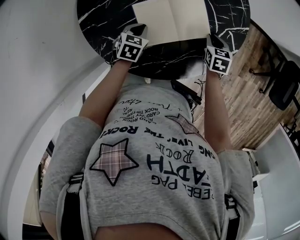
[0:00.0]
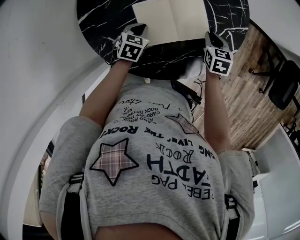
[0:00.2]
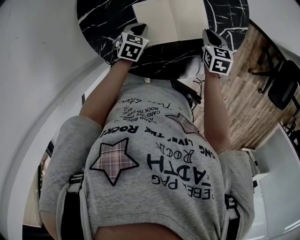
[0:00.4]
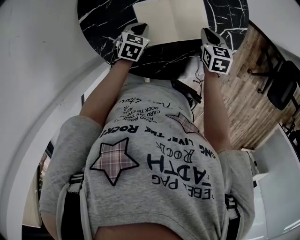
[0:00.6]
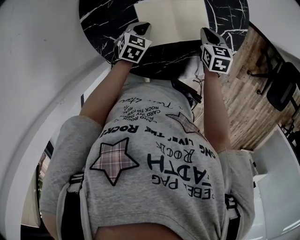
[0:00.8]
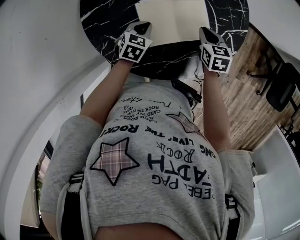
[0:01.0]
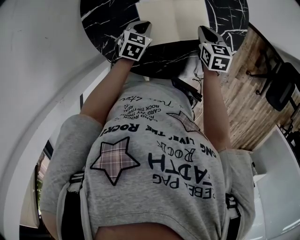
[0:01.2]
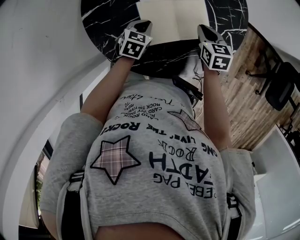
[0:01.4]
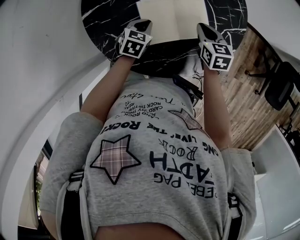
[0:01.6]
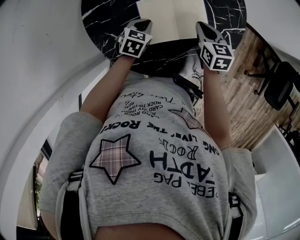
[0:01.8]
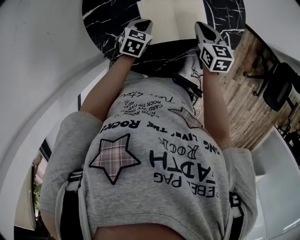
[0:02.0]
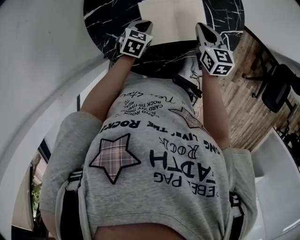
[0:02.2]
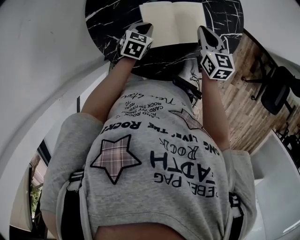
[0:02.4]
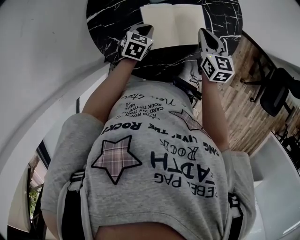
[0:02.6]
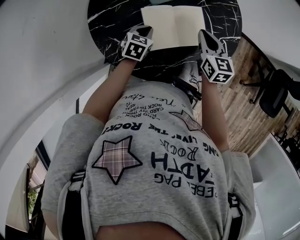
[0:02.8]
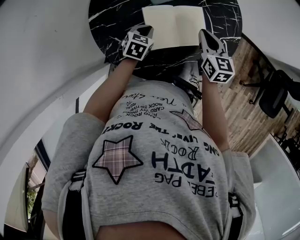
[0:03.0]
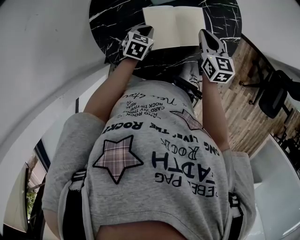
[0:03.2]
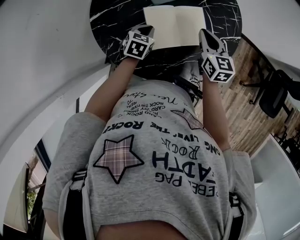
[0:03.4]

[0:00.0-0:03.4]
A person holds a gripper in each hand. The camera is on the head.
0:00.0 to 0:01.6: The right gripper is displaced to the left and upward by some 10 cm.
0:01.6 to 0:03.4: The right gripper shifts about 5 cm upward.

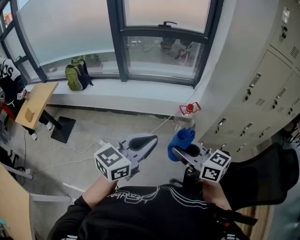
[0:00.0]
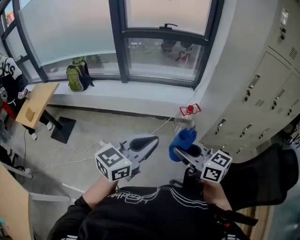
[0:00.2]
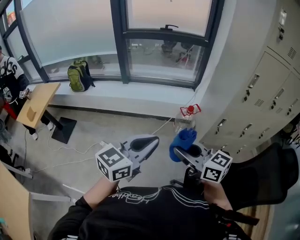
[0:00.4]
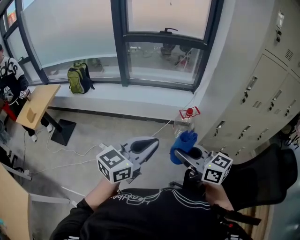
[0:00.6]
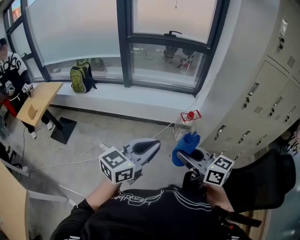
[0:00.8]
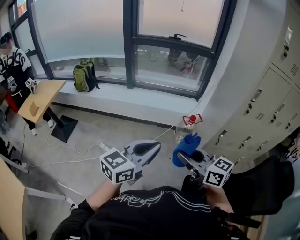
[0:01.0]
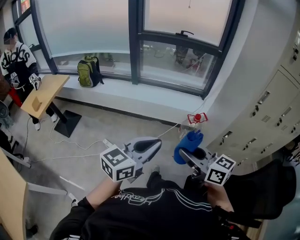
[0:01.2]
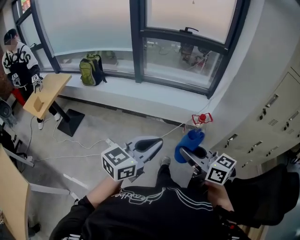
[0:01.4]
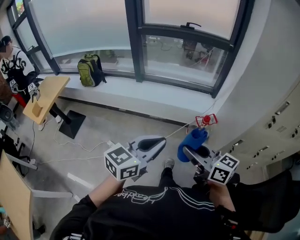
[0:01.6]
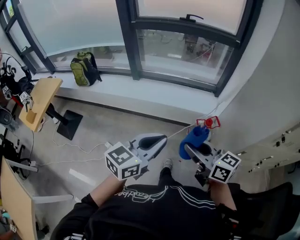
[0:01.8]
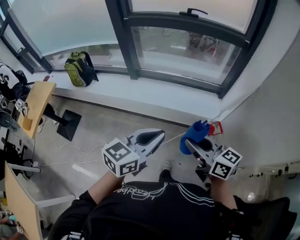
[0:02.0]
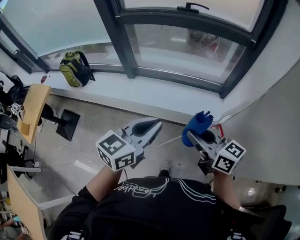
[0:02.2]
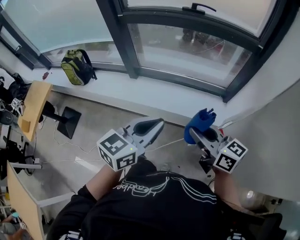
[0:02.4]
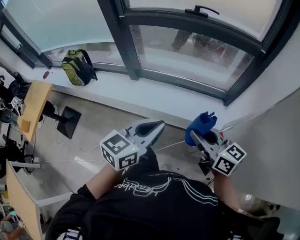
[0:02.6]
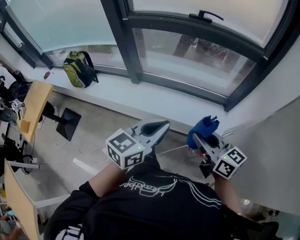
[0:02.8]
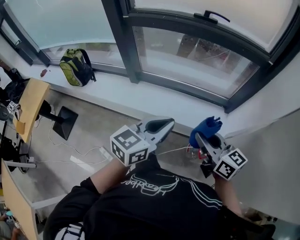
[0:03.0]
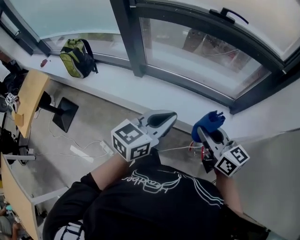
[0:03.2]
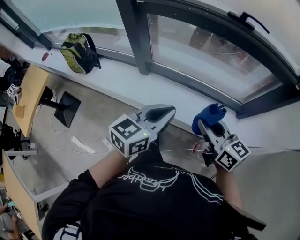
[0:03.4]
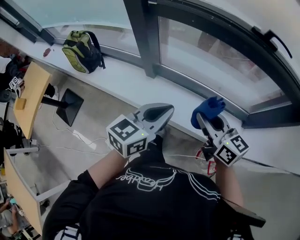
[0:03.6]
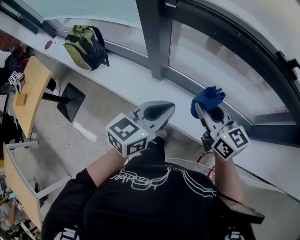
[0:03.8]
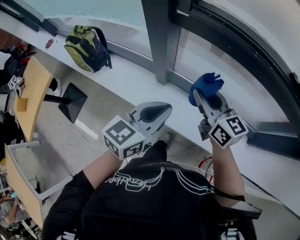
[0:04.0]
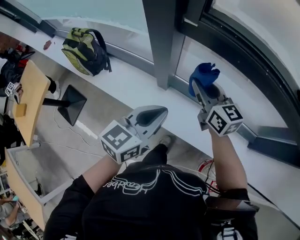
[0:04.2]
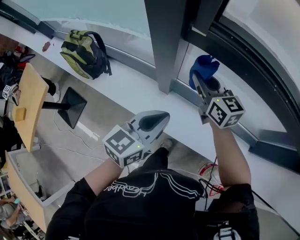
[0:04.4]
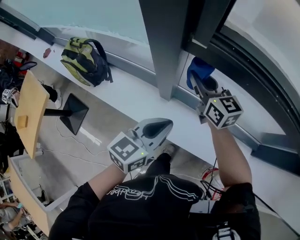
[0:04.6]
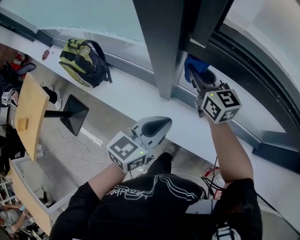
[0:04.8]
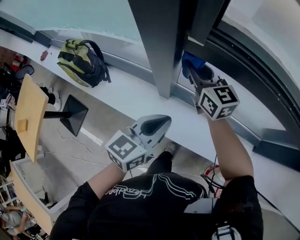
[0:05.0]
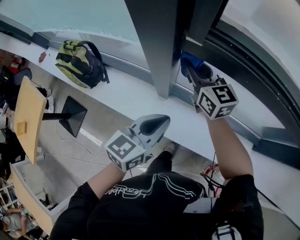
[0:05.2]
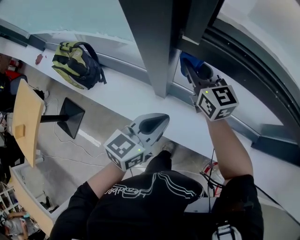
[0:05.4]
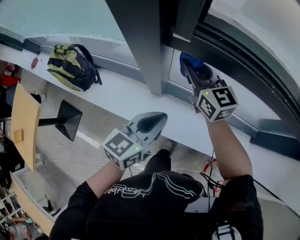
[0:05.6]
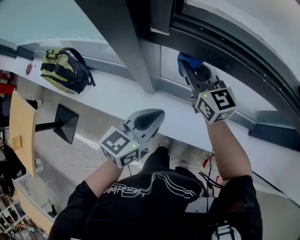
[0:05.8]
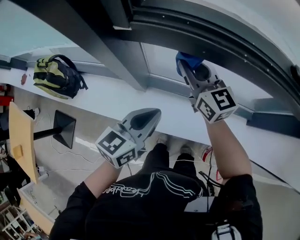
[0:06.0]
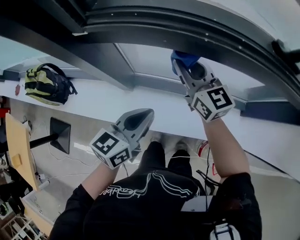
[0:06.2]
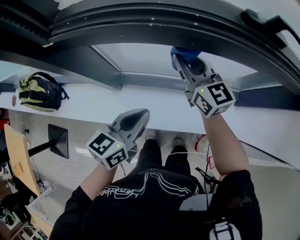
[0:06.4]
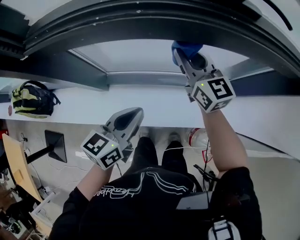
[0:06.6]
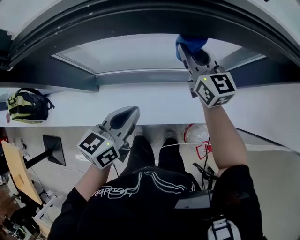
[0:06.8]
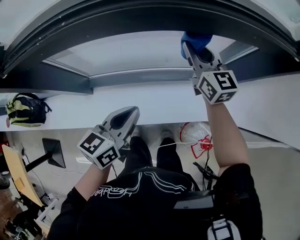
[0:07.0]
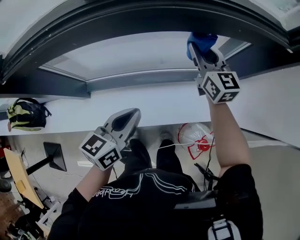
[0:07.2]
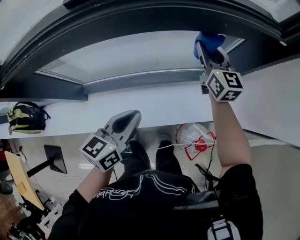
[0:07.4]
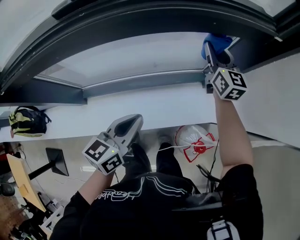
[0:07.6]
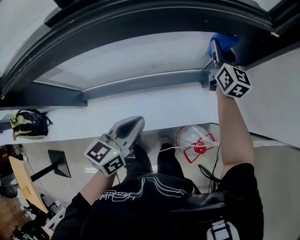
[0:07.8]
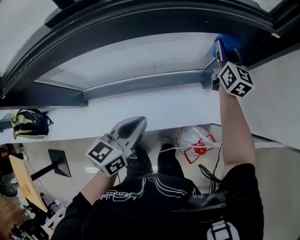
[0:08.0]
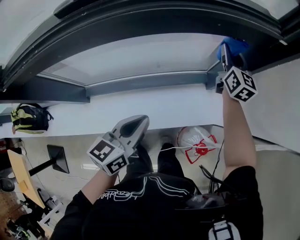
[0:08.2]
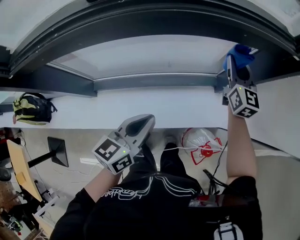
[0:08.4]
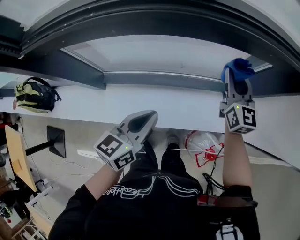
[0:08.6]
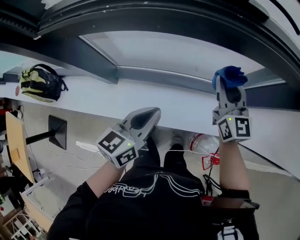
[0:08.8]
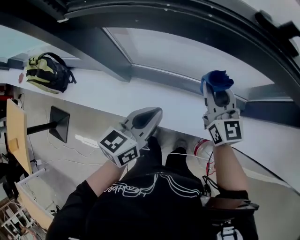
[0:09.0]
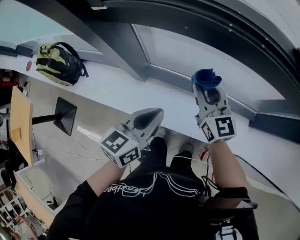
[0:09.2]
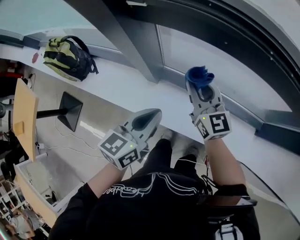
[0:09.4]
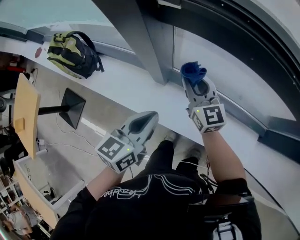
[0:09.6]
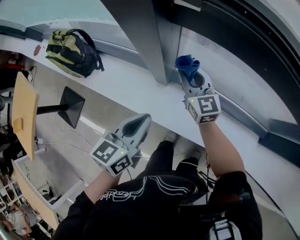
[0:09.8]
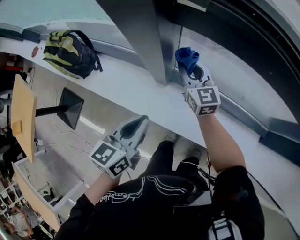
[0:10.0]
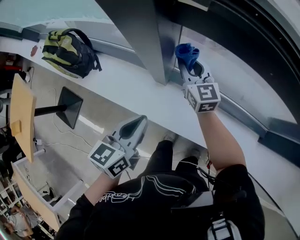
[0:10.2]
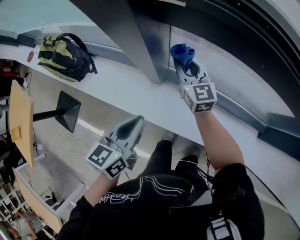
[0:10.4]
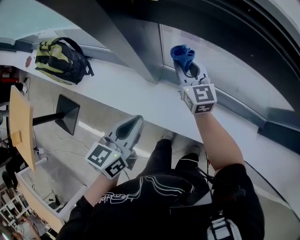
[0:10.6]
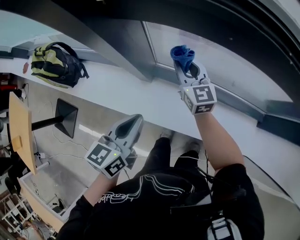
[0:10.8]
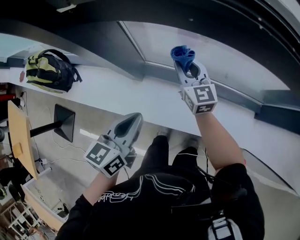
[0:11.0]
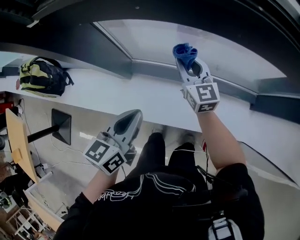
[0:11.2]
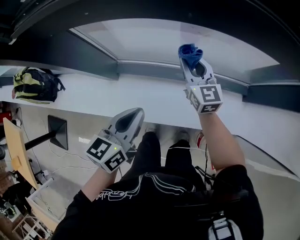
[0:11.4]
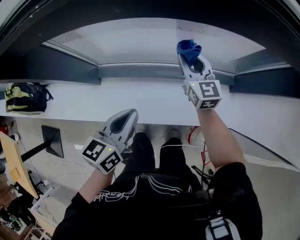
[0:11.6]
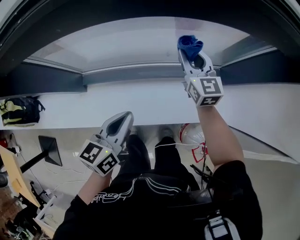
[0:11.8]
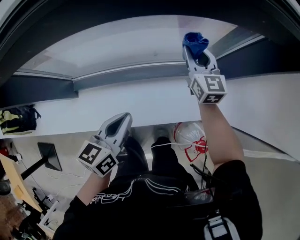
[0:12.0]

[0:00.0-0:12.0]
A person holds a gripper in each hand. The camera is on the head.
0:00.0 to 0:01.6: Both grippers travel together forward, some 15 cm.
0:01.6 to 0:03.0: The two grippers travel together, forward, roughly 50 cm.
0:03.0 to 0:04.4: The two grippers travel together, forward and to the left, about 60 cm.
0:04.4 to 0:06.0: Both grippers move to the right, approximately 10 cm.
0:06.0 to 0:07.6: The left gripper ends up approximately 35 cm from where it was, while the right gripper changes place by approximately 60 cm, and changes its angle by approximately 40 degrees.
0:07.6 to 0:09.0: The left gripper changes place by about 25 cm. Meanwhile the right gripper shifts by roughly 35 cm, and swivels roughly 30 degrees.
0:09.0 to 0:10.4: The left gripper travels to the left by approximately 25 cm. The right gripper is displaced to the left and forward by some 35 cm.
0:10.4 to 0:12.0: Both grippers are carried some 50 cm. The left gripper swivels about 30 degrees; the right gripper turns by about 30 degrees.

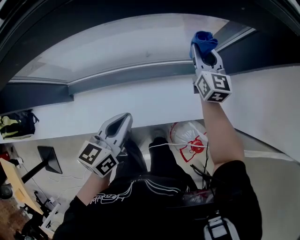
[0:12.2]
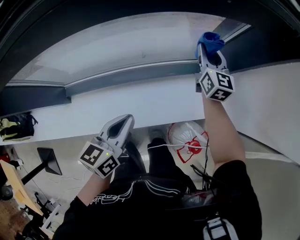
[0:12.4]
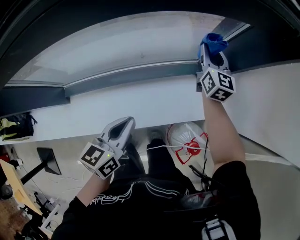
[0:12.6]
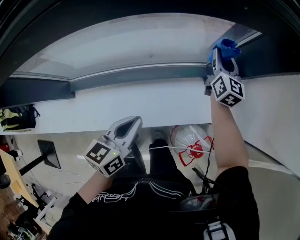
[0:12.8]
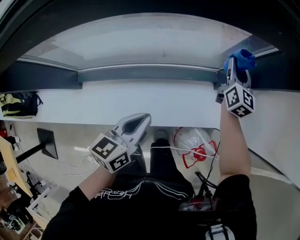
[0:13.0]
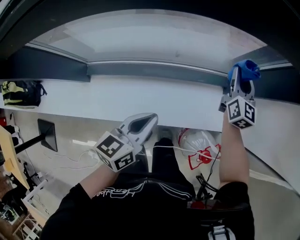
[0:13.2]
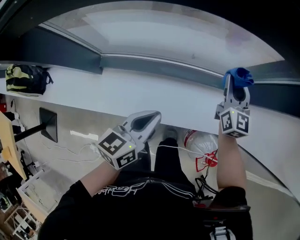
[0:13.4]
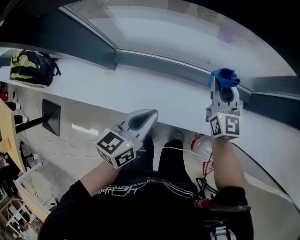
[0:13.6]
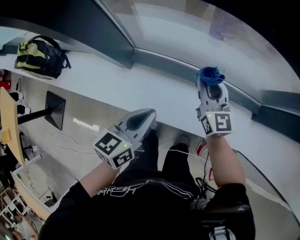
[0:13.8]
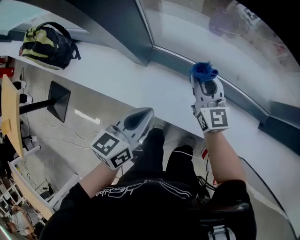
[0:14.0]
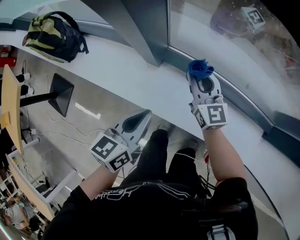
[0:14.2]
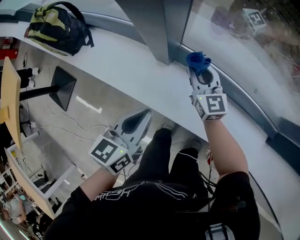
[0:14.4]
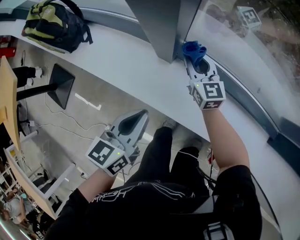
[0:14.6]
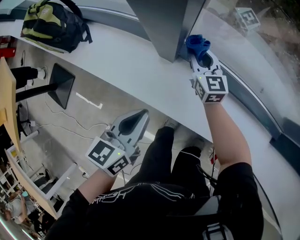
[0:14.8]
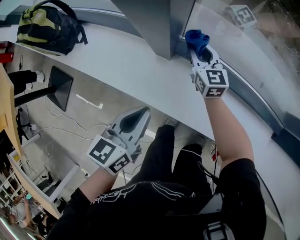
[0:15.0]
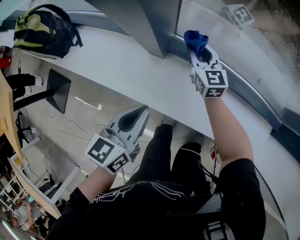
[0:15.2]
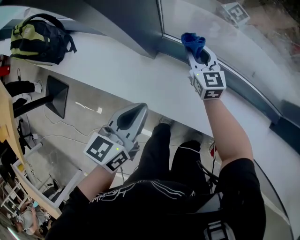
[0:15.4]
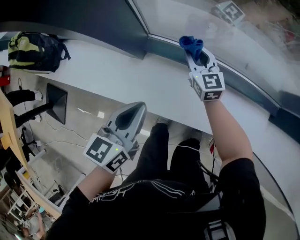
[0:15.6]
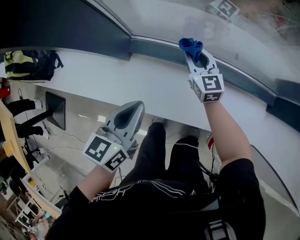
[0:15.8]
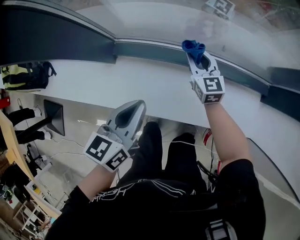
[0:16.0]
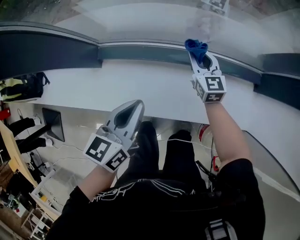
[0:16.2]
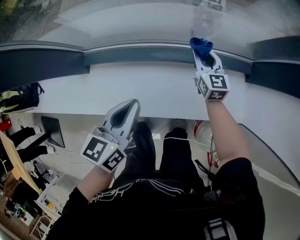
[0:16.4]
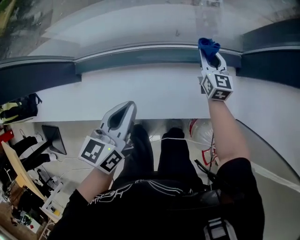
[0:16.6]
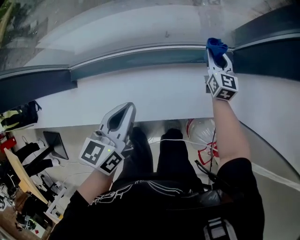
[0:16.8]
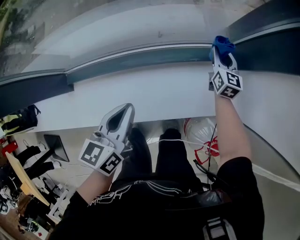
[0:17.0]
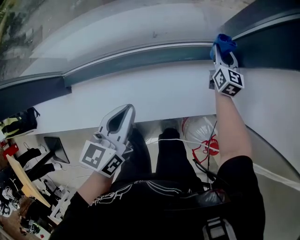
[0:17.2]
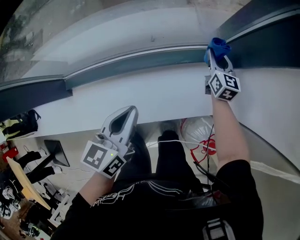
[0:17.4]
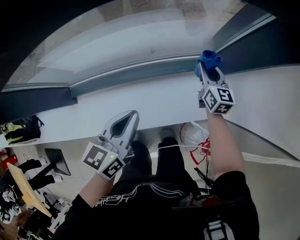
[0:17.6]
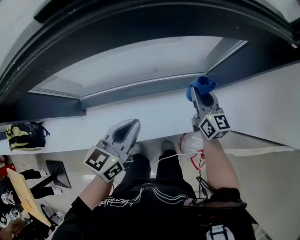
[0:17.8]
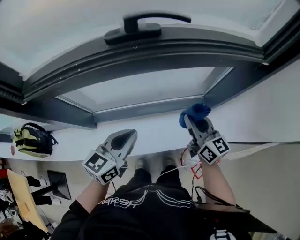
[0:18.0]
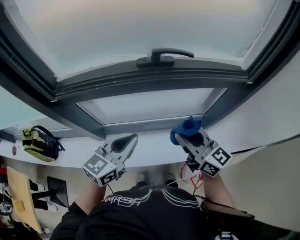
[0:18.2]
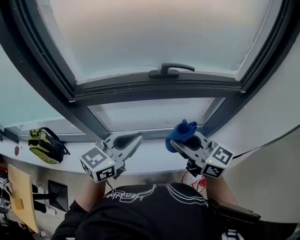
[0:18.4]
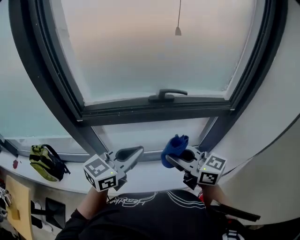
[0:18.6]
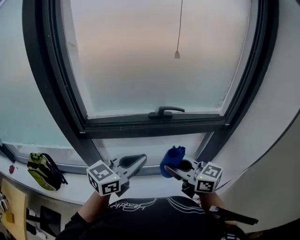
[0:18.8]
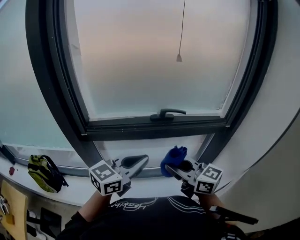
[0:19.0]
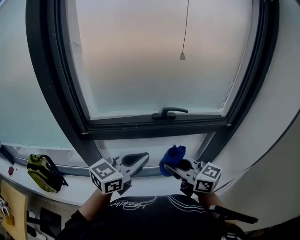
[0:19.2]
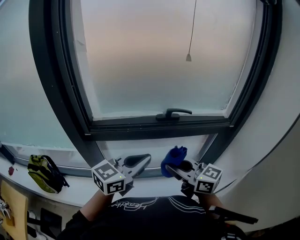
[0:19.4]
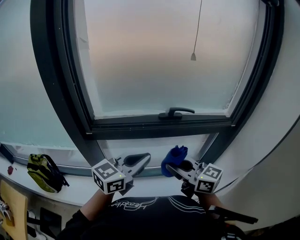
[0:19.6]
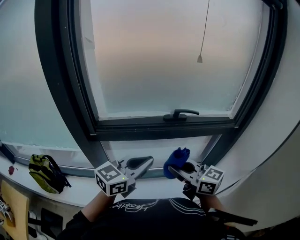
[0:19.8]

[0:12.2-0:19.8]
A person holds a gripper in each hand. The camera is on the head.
0:12.2 to 0:13.8: The left gripper ends up about 25 cm from where it was, while the right gripper changes place by some 40 cm, and rotates roughly 30 degrees.
0:13.8 to 0:15.2: The right gripper travels to the left, downward and forward by roughly 30 cm. Meanwhile the left gripper shifts some 20 cm to the left.
0:15.2 to 0:16.8: The left gripper moves roughly 40 cm, and turns by approximately 20 degrees; the right gripper ends up some 60 cm from where it was, and changes its angle by about 40 degrees.
0:16.8 to 0:18.2: The right gripper shifts some 50 cm upward and backward, and rotates approximately 40 degrees, while the left gripper shifts approximately 35 cm upward, and swivels roughly 30 degrees.
0:18.2 to 0:19.8: The right gripper goes about 15 cm to the left and upward, while the left gripper is displaced upward by roughly 15 cm.
